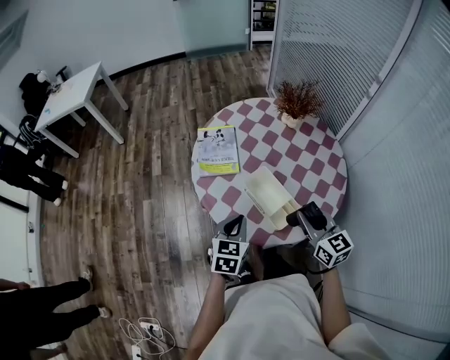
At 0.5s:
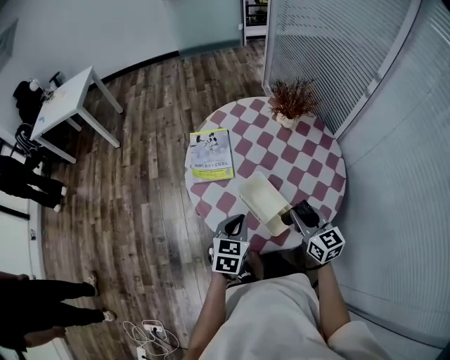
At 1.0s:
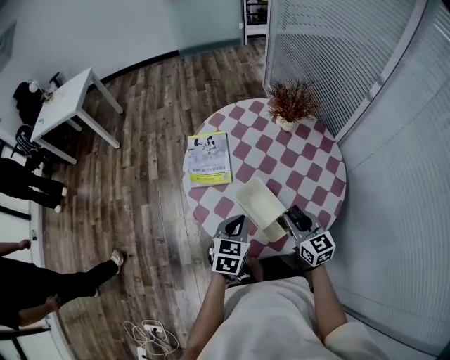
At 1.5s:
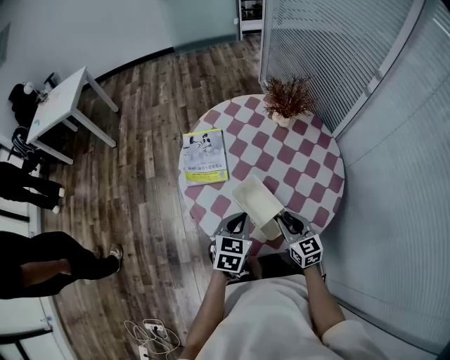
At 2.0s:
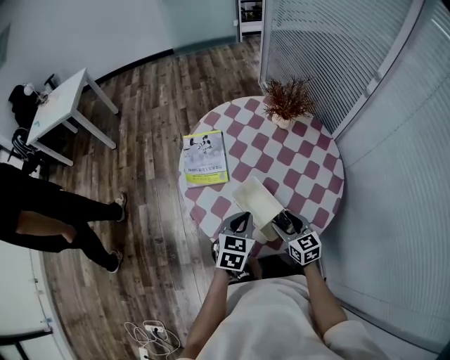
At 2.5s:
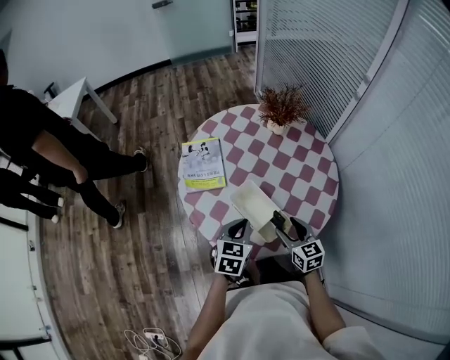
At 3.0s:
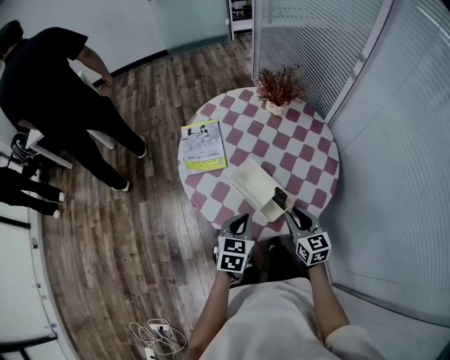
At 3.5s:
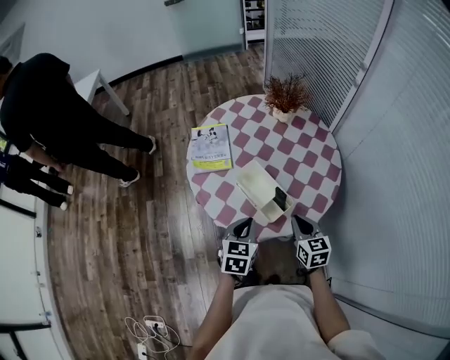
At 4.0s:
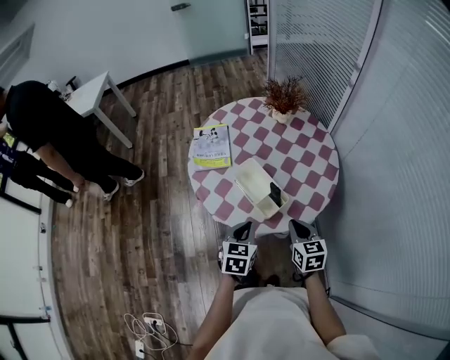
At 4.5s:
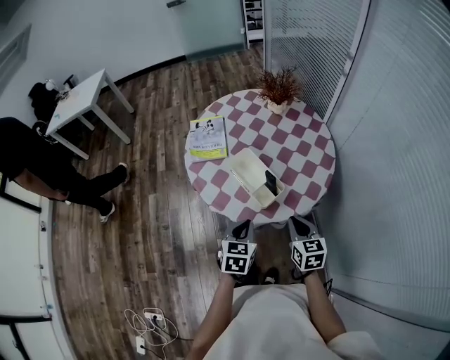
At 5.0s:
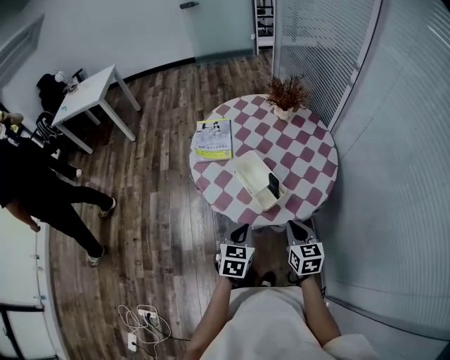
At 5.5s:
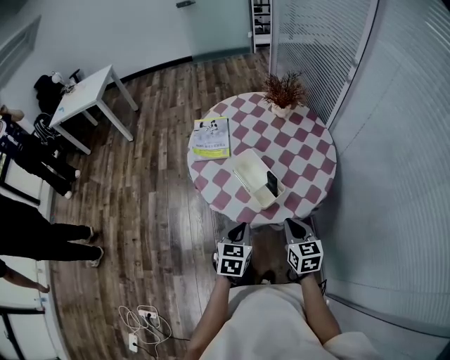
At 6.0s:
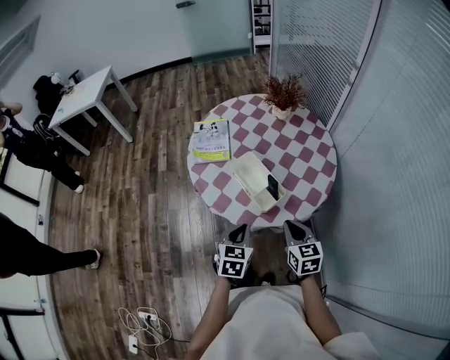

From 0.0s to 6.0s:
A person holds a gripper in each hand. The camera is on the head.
From 0.0s to 2.0s: The right gripper goes some 15 cm downward, and opens up; the left gripper travels to the right and forward by approximately 10 cm.
From 2.0s to 4.0s: The right gripper heads backward, upward and to the right, covering approximately 15 cm, and closes up, while the left gripper goes roughly 15 cm backward.
From 4.0s to 6.0s: The grippers move only a little.

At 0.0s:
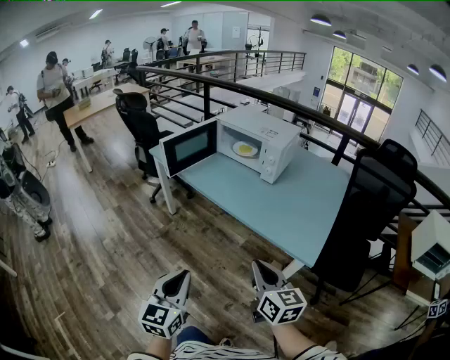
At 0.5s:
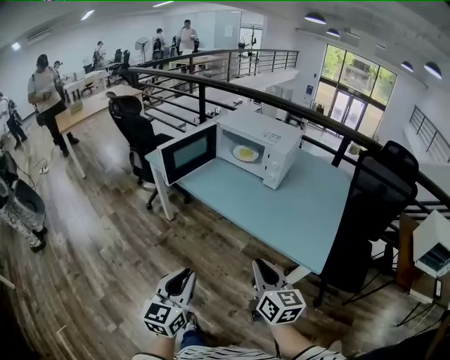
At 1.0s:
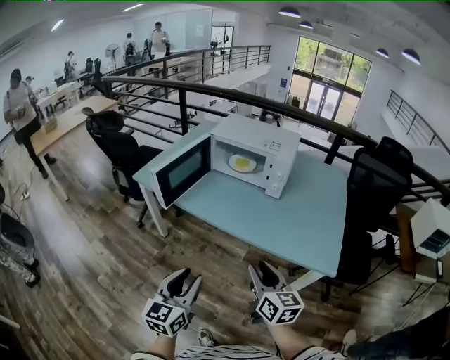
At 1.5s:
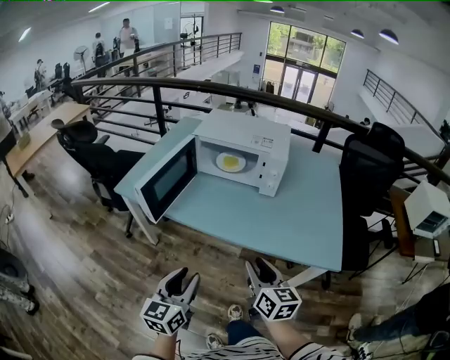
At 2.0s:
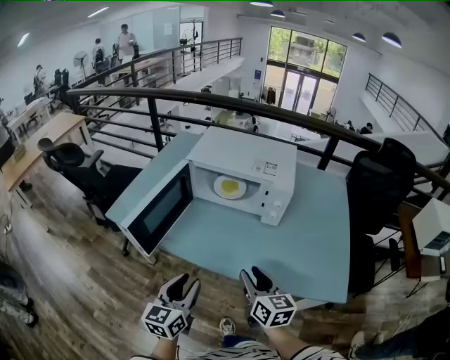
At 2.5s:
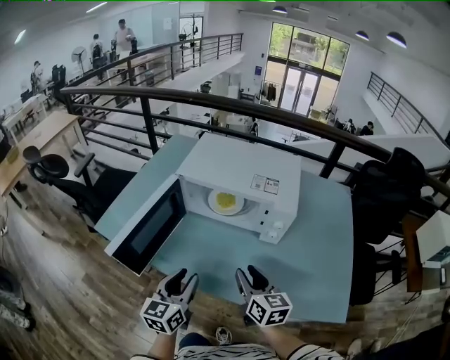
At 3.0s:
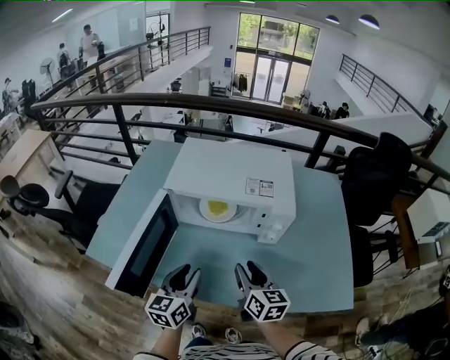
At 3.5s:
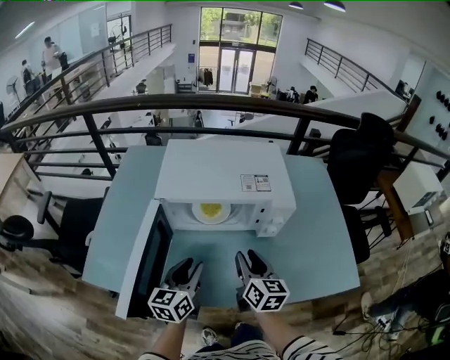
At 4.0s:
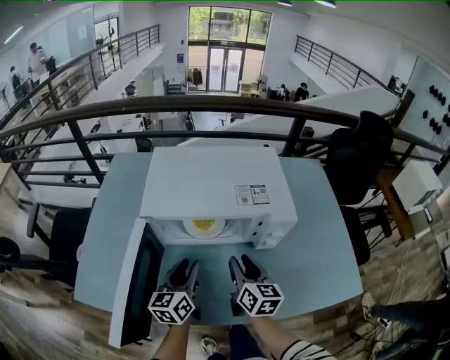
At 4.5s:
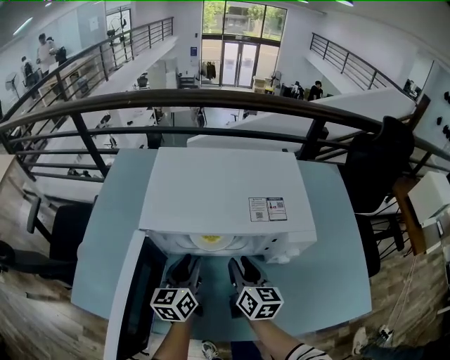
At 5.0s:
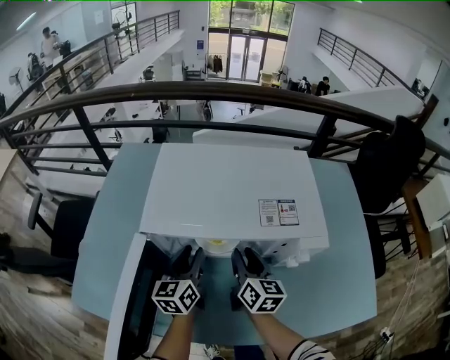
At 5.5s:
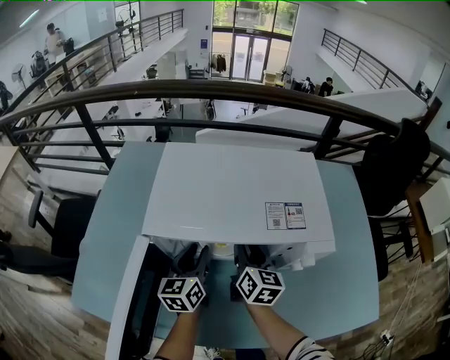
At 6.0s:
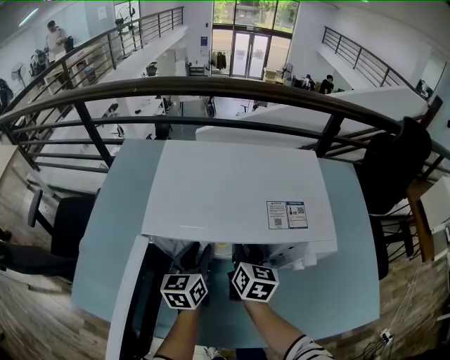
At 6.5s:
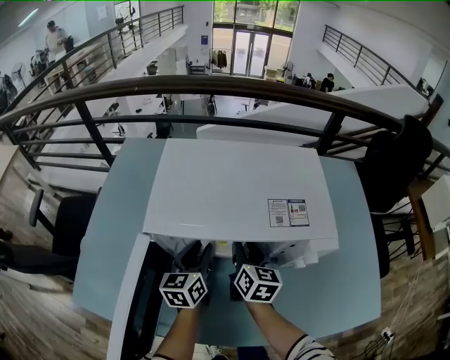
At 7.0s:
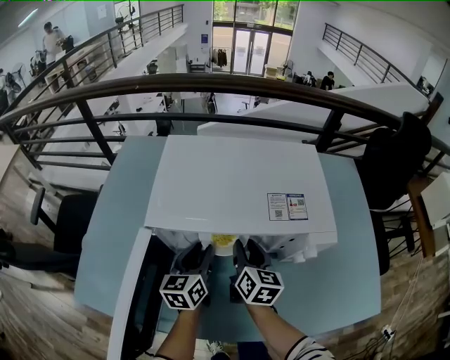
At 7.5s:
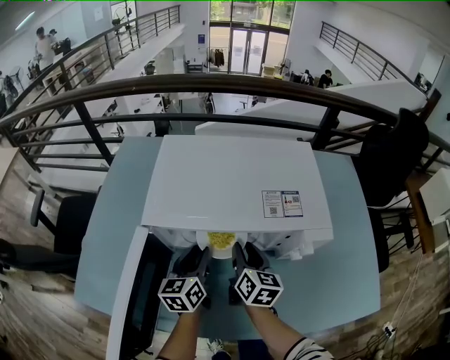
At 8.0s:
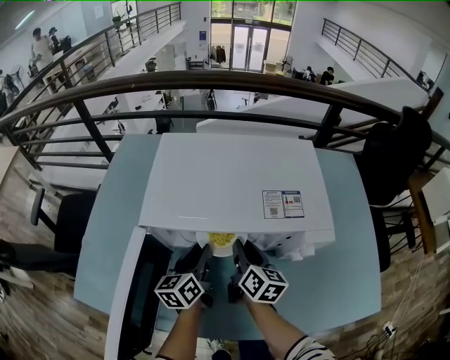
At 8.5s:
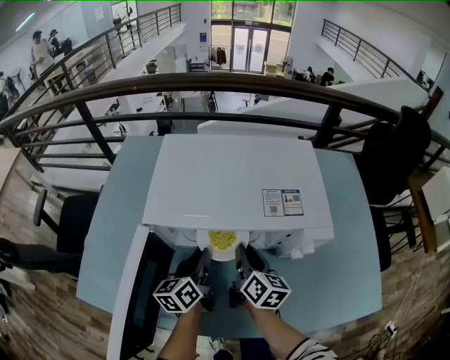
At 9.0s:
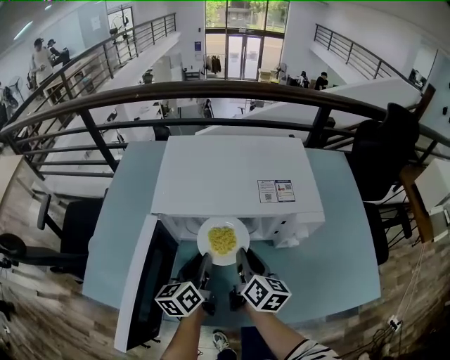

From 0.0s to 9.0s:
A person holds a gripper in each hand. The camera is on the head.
From 0.0s to 2.0s: The right gripper is displaced forward and to the left by approximately 35 cm, swivels some 20 degrees, and opens up, while the left gripper is displaced forward by approximately 40 cm, changes its angle by roughly 20 degrees, and opens its fingers.
From 2.0s to 4.5s: The two grippers go some 35 cm forward. The right gripper rotates approximately 20 degrees.
From 4.5s to 7.0s: The right gripper heads forward, covering some 5 cm.
From 7.0s to 9.0s: The two grippers go approximately 10 cm backward.

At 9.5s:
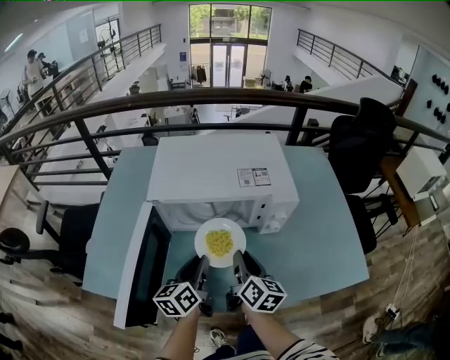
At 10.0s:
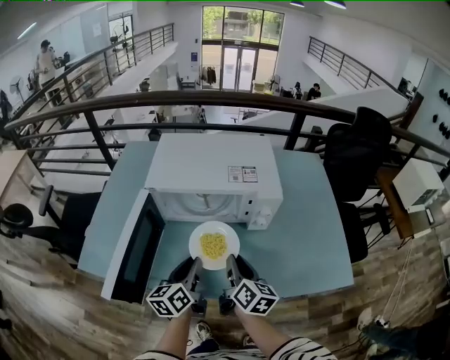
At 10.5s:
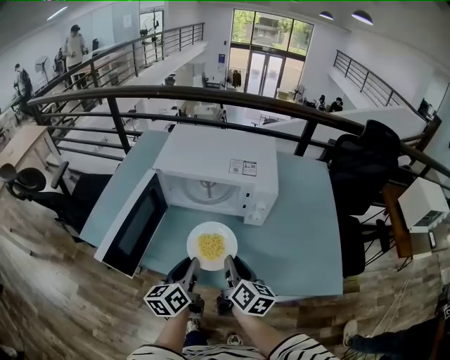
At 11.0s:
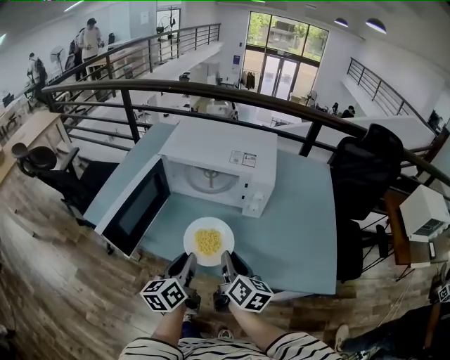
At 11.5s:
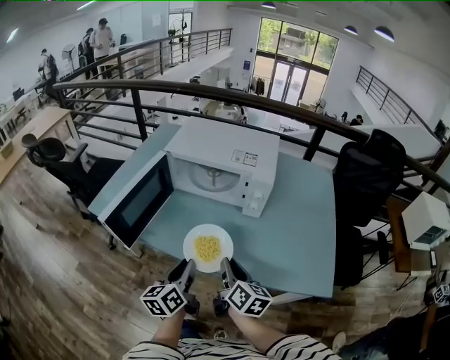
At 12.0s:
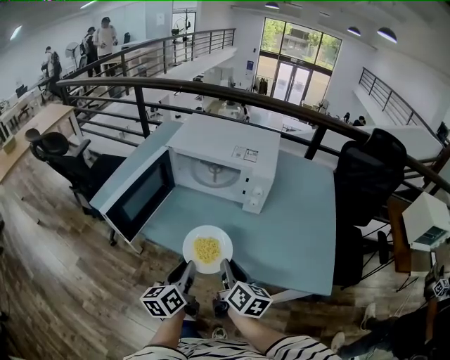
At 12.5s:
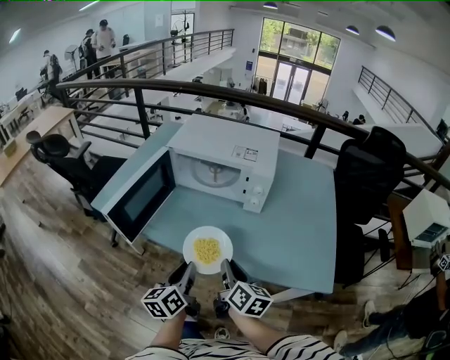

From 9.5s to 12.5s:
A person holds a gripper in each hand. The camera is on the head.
From 9.5s to 11.0s: Both grippers travel together backward and to the right, roughly 15 cm.
From 11.0s to 12.5s: Both grippers move backward, about 5 cm.
